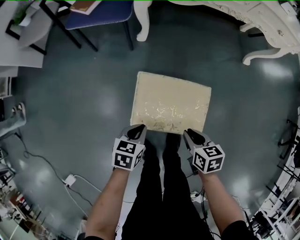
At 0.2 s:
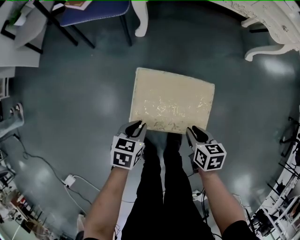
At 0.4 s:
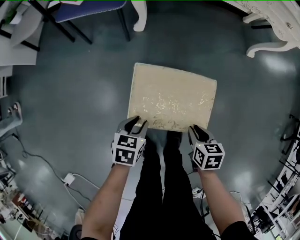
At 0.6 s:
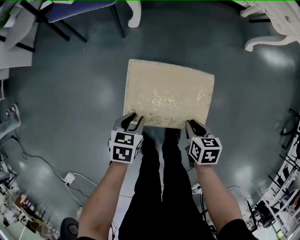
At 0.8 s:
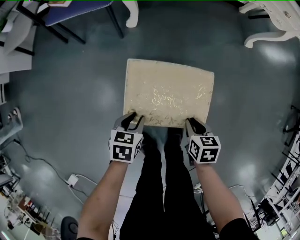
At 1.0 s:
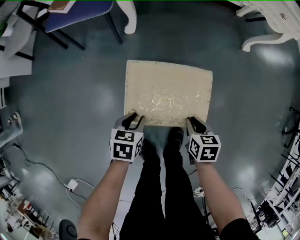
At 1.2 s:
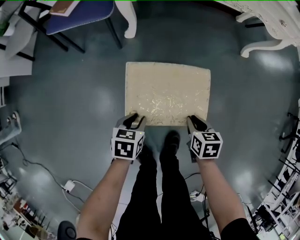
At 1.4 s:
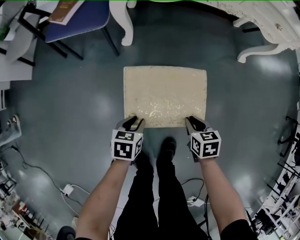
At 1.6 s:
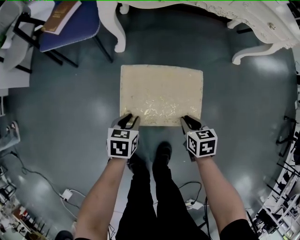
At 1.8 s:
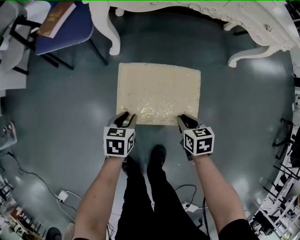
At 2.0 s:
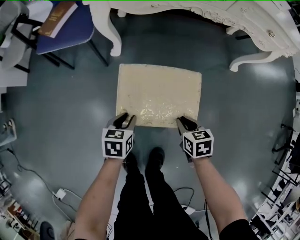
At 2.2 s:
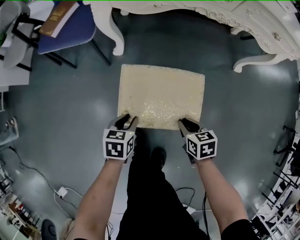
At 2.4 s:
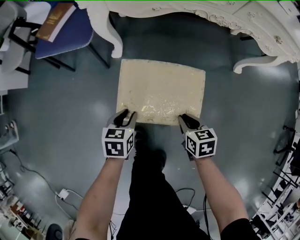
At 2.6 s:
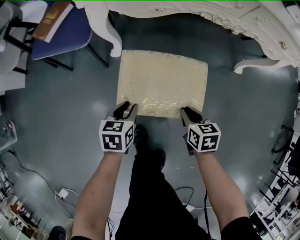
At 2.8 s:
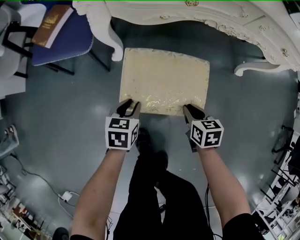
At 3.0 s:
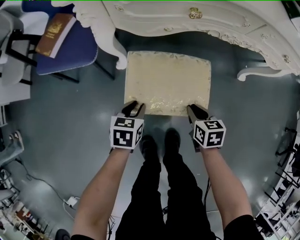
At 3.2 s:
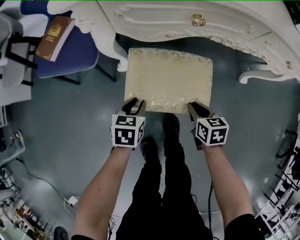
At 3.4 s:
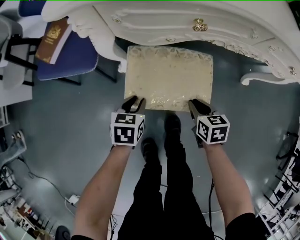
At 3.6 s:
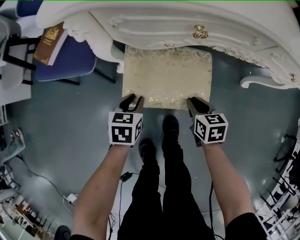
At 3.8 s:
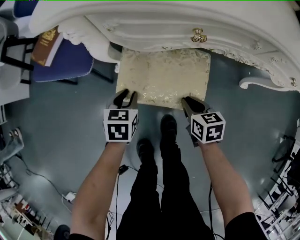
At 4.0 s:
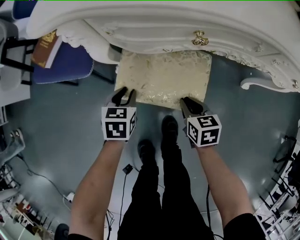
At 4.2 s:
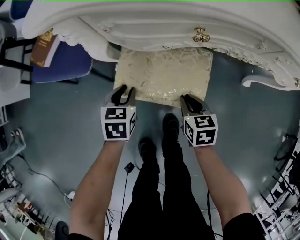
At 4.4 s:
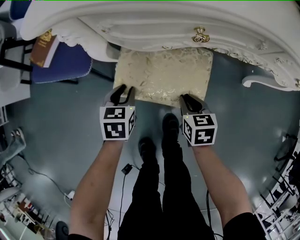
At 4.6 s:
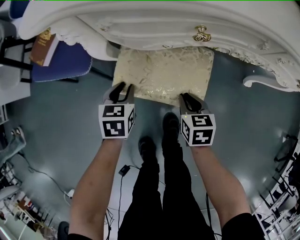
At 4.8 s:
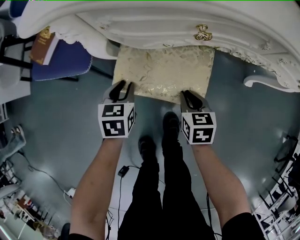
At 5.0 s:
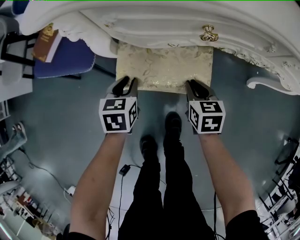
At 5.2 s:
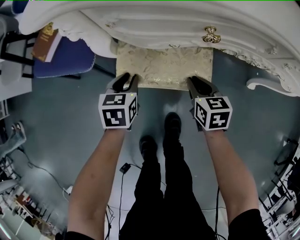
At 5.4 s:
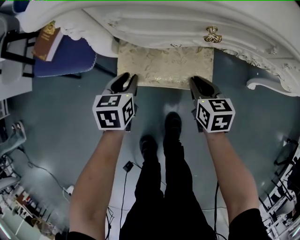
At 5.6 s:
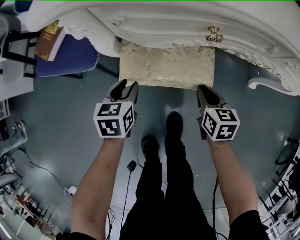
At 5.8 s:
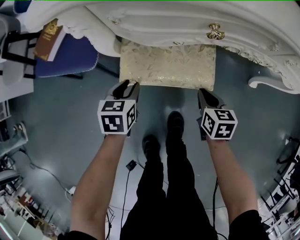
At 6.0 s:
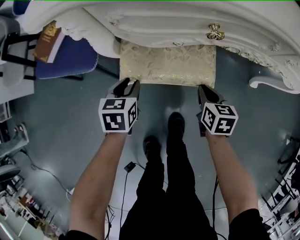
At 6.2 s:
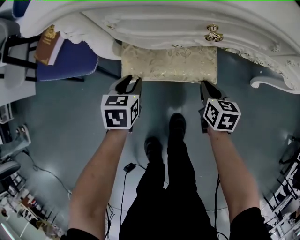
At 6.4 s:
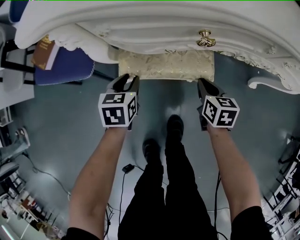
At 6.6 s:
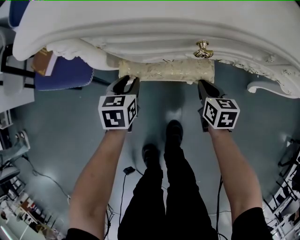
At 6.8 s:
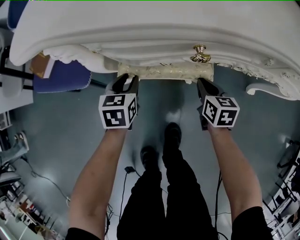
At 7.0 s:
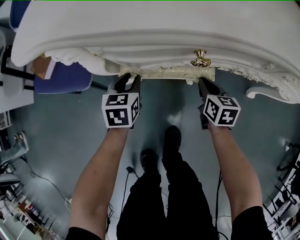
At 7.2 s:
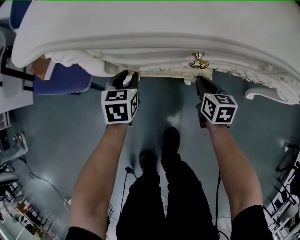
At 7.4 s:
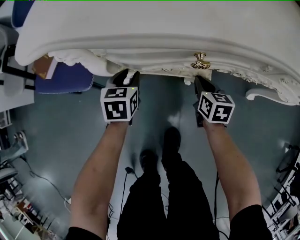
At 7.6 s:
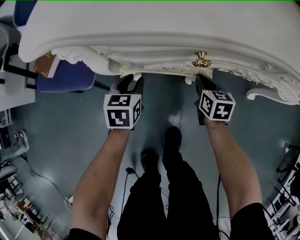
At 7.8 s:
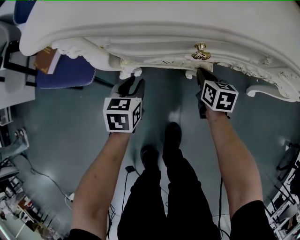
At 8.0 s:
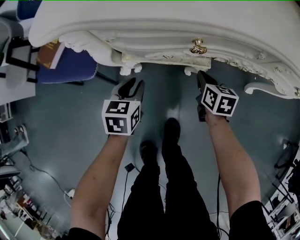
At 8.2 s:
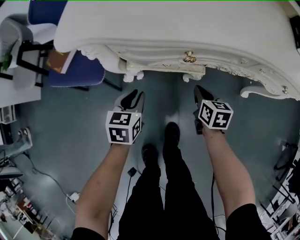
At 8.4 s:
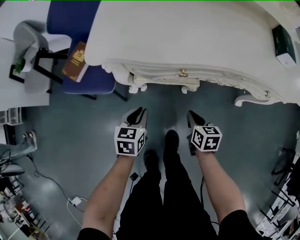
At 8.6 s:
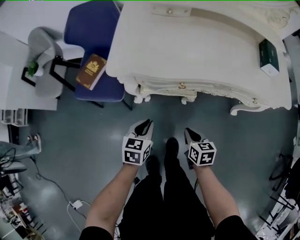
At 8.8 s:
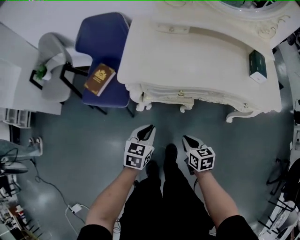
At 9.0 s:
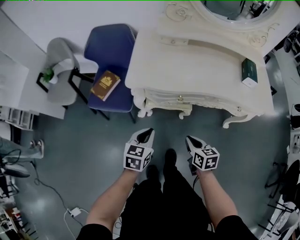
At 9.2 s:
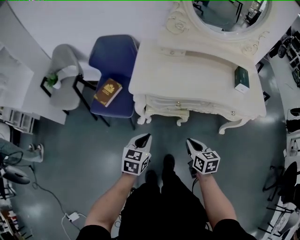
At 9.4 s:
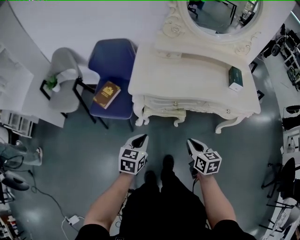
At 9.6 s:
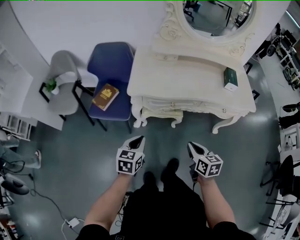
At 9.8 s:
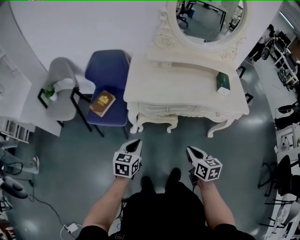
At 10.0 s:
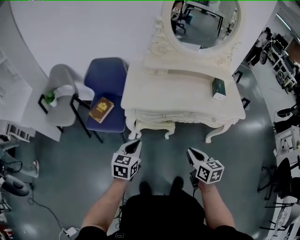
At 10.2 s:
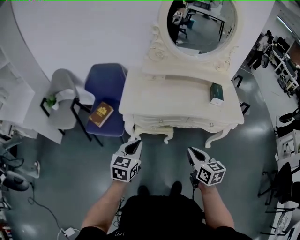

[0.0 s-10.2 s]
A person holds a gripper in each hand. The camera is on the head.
0.0 to 1.4 s: The left gripper is displaced forward and downward by some 10 cm, and opens its fingers, while the right gripper heads forward, downward and to the right, covering some 15 cm.
1.4 to 3.0 s: The two grippers go about 25 cm forward.
3.0 to 4.4 s: Both grippers move forward, approximately 10 cm.
5.8 to 7.2 s: The grippers both shift forward by approximately 10 cm.
7.2 to 8.8 s: The two grippers go about 35 cm upward and backward. The left gripper closes its fingers.
8.8 to 10.2 s: The two grippers go roughly 25 cm upward. The right gripper turns by approximately 20 degrees.

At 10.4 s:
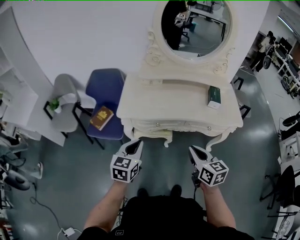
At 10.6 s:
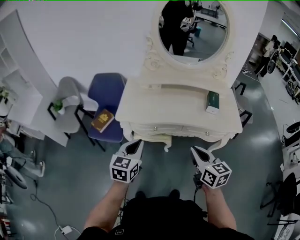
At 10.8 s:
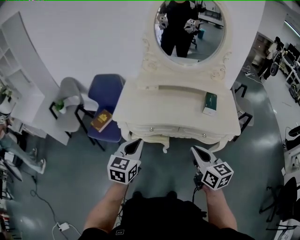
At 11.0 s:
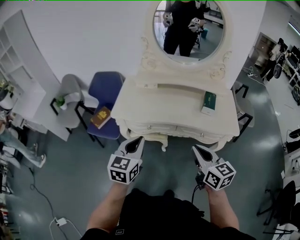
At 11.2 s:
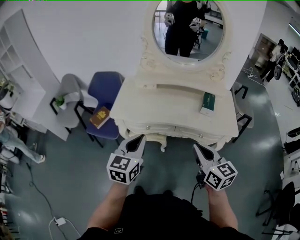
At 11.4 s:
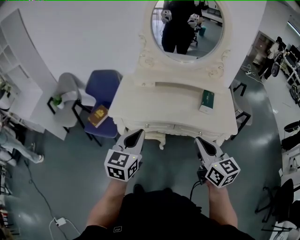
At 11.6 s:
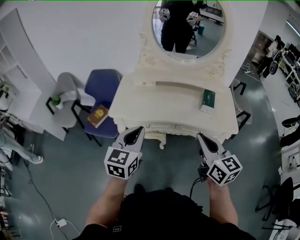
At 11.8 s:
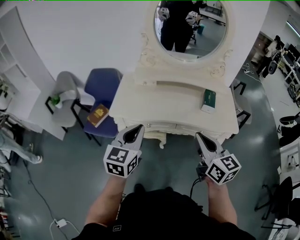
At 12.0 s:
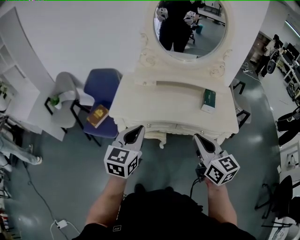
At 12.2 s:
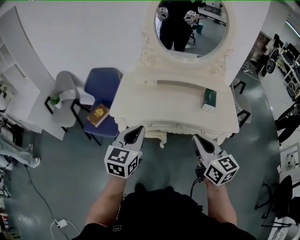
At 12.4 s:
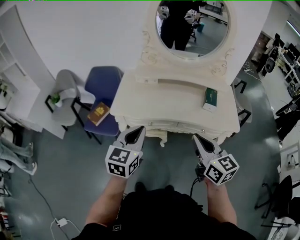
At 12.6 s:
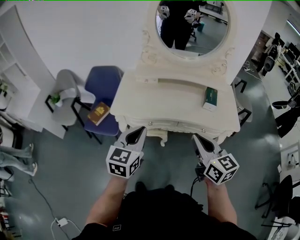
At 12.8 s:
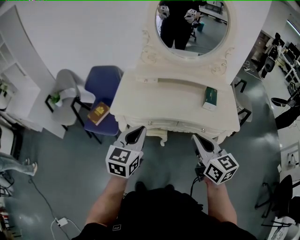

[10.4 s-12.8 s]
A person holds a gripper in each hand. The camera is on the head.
10.4 to 11.6 s: The two grippers go some 15 cm upward and to the right.
11.6 to 12.8 s: The grippers make only small movements.

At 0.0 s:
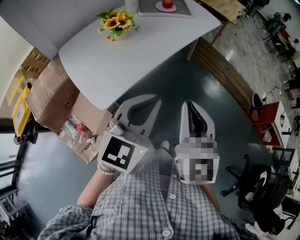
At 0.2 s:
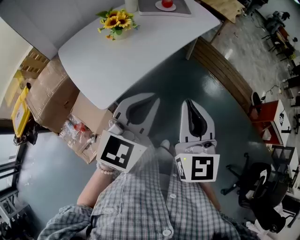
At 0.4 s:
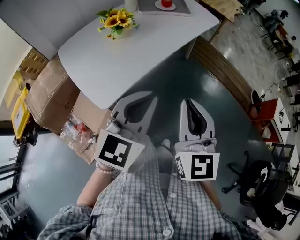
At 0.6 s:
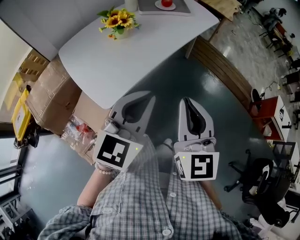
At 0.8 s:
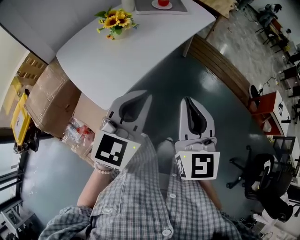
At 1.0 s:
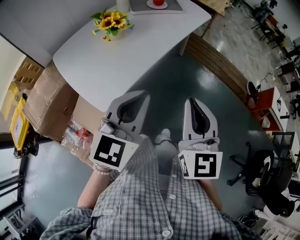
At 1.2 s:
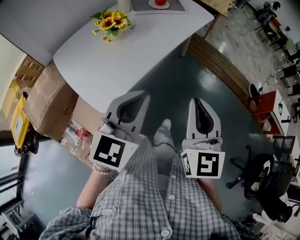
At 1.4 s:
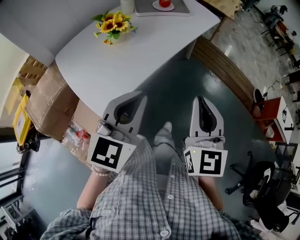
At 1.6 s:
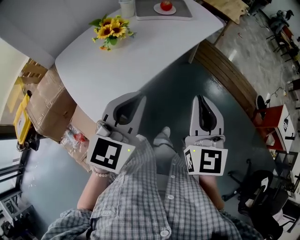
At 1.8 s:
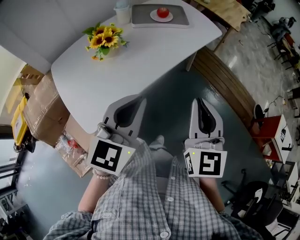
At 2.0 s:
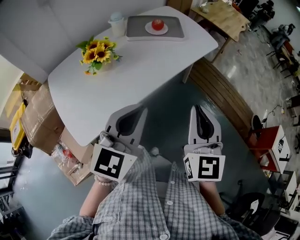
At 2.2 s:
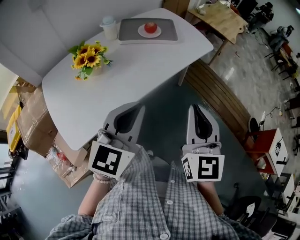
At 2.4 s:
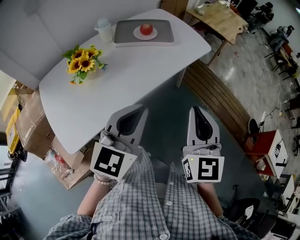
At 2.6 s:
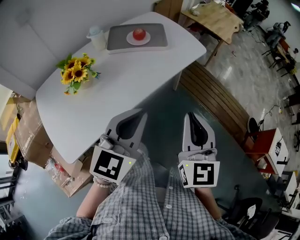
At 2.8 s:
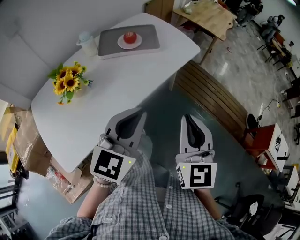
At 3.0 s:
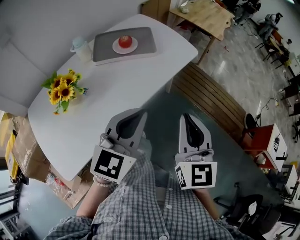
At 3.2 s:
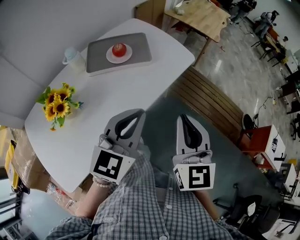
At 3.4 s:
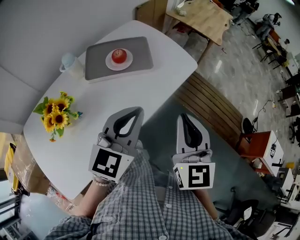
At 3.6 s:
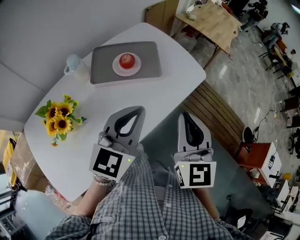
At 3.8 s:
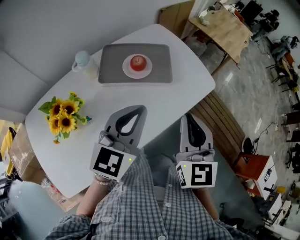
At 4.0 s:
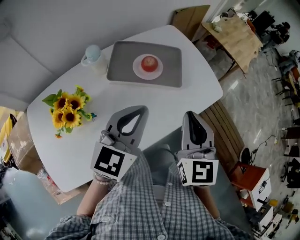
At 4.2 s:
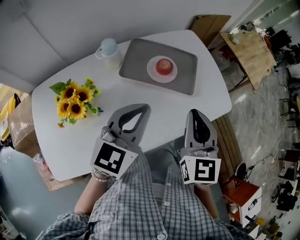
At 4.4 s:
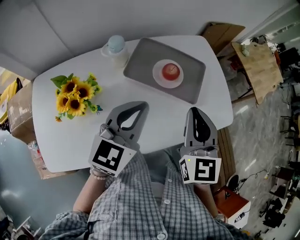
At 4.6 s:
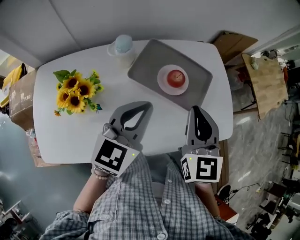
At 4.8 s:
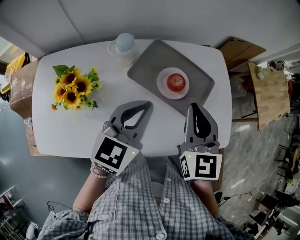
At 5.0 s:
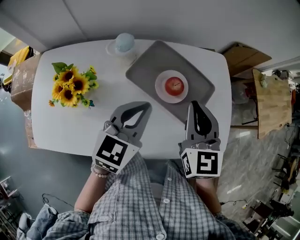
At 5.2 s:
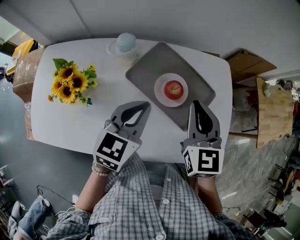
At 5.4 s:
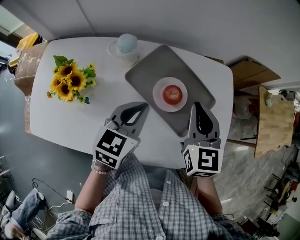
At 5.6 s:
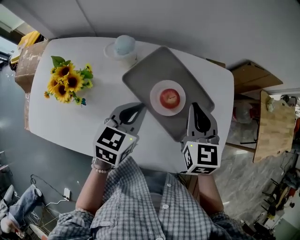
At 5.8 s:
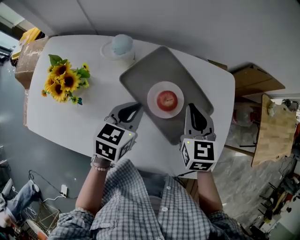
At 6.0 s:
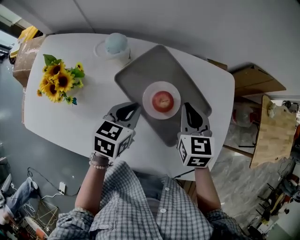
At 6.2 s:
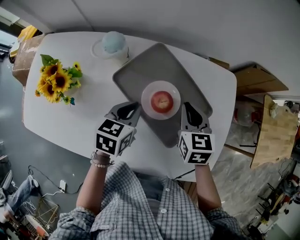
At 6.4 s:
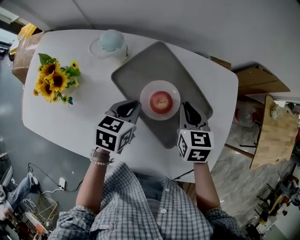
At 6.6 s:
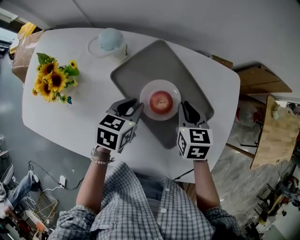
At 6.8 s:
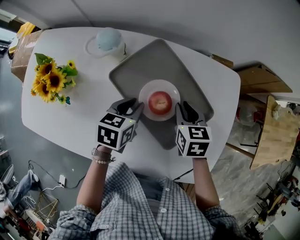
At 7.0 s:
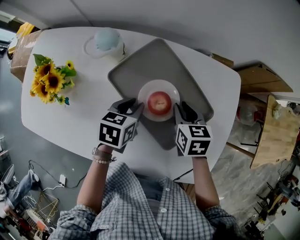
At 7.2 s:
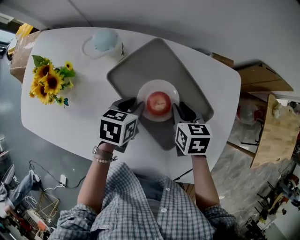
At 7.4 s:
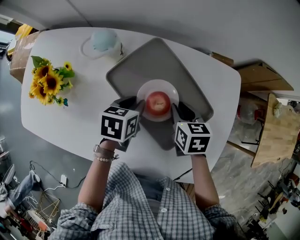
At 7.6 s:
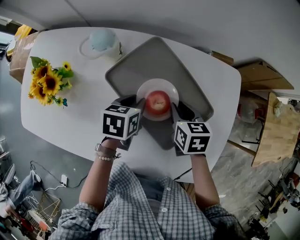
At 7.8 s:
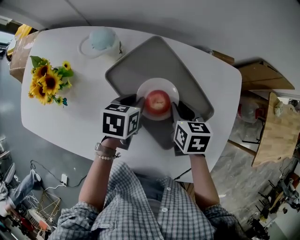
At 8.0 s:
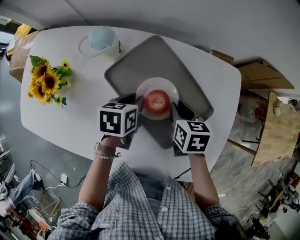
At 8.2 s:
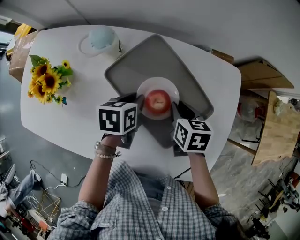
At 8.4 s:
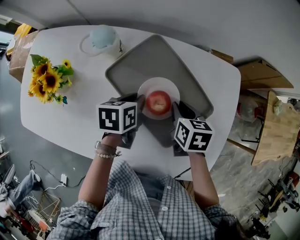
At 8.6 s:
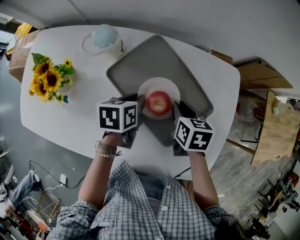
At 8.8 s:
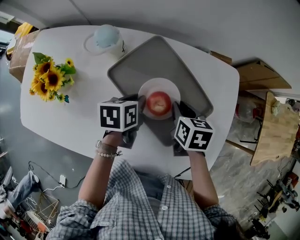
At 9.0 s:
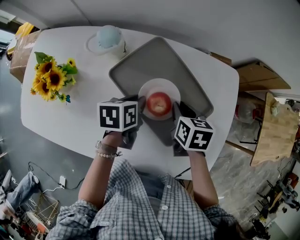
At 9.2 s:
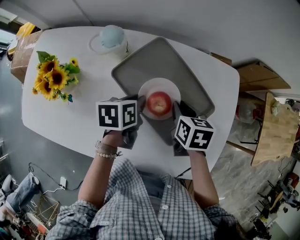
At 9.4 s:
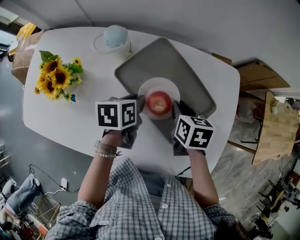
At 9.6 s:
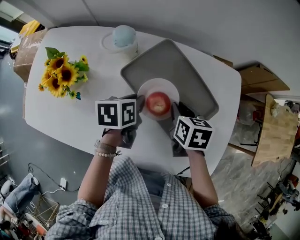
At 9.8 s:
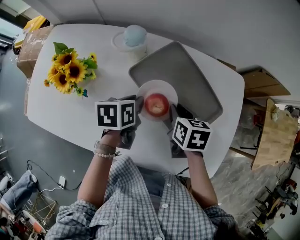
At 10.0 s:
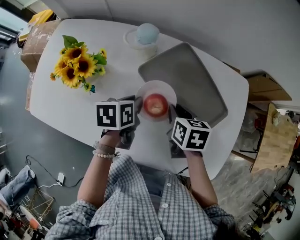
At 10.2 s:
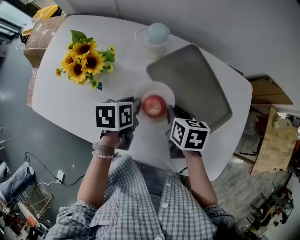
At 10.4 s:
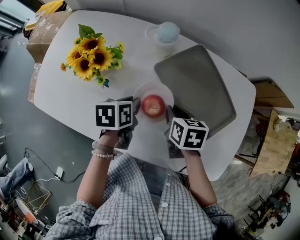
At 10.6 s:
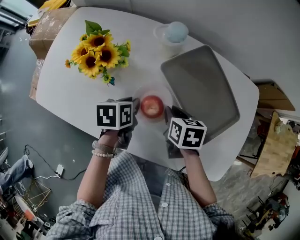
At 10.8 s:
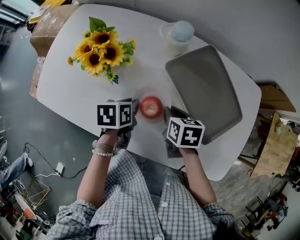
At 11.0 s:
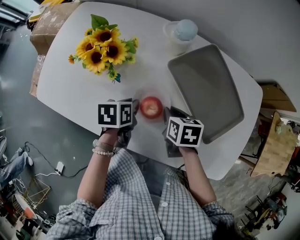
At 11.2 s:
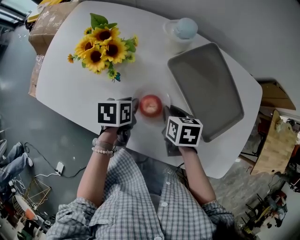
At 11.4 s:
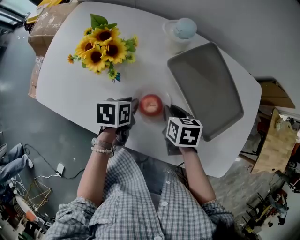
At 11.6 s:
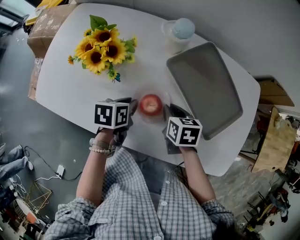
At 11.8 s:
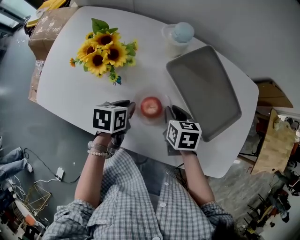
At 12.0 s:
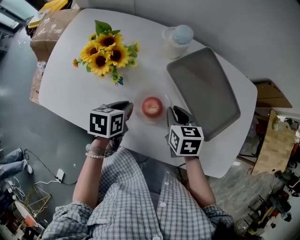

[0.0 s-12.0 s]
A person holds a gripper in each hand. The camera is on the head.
0.0 to 1.6 s: The grippers both shift forward by approximately 10 cm.
1.6 to 3.0 s: The two grippers go some 30 cm forward and to the right.
3.0 to 4.4 s: The right gripper moves roughly 30 cm, and swivels roughly 30 degrees, while the left gripper changes place by roughly 25 cm, and rotates about 30 degrees.
4.4 to 6.0 s: The left gripper goes roughly 15 cm downward, and rotates roughly 40 degrees, while the right gripper moves roughly 25 cm, and rotates some 40 degrees.
6.0 to 7.6 s: The grippers both shift downward by approximately 10 cm. The right gripper turns by roughly 30 degrees. The left gripper rotates about 20 degrees, and opens its fingers.
7.6 to 9.0 s: There are only small adjustments of the grippers.
9.0 to 10.4 s: The grippers both shift to the left and backward by about 15 cm.
10.4 to 12.0 s: The left gripper is displaced to the left by about 5 cm.
